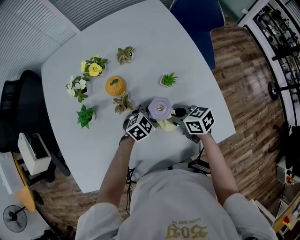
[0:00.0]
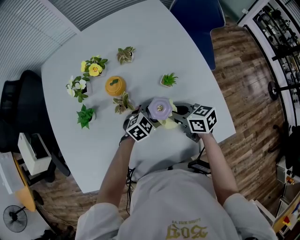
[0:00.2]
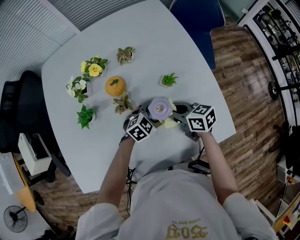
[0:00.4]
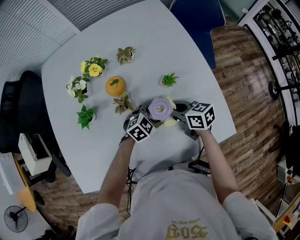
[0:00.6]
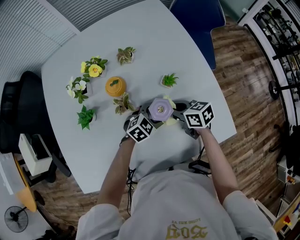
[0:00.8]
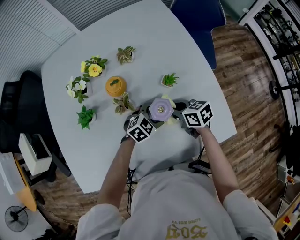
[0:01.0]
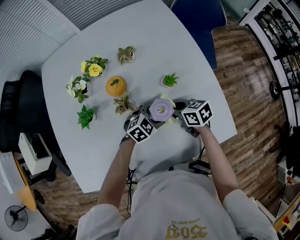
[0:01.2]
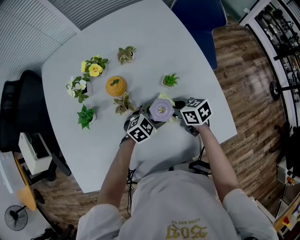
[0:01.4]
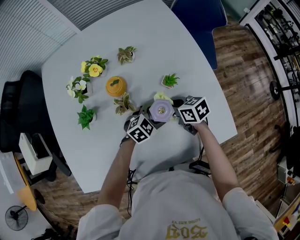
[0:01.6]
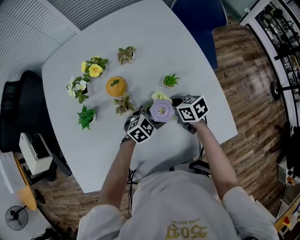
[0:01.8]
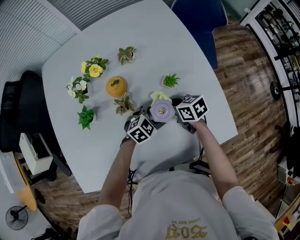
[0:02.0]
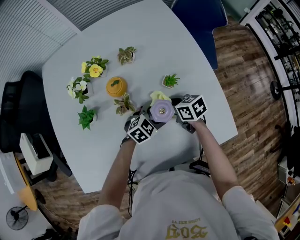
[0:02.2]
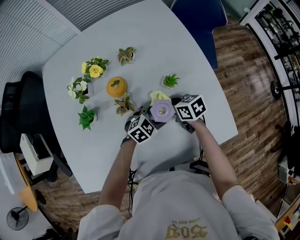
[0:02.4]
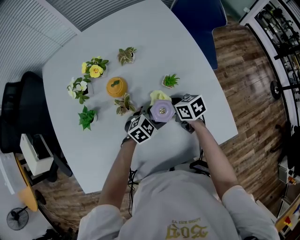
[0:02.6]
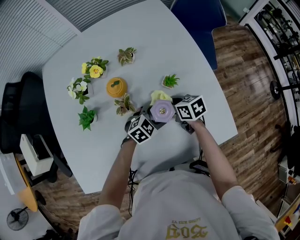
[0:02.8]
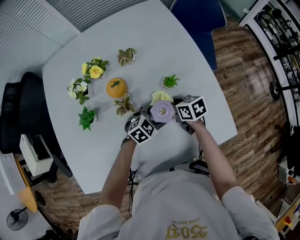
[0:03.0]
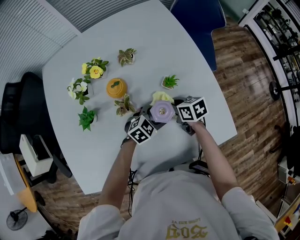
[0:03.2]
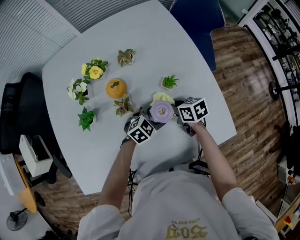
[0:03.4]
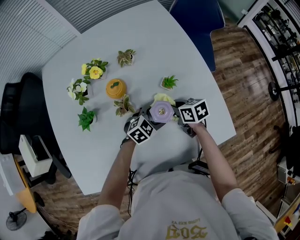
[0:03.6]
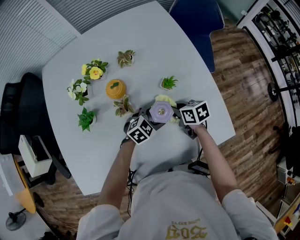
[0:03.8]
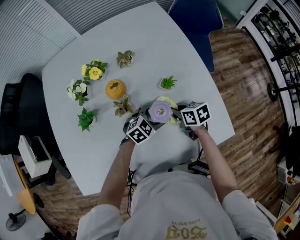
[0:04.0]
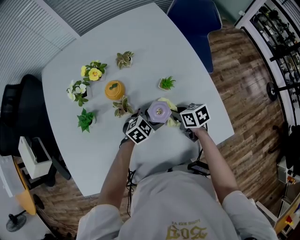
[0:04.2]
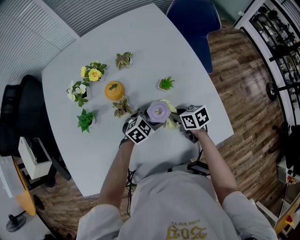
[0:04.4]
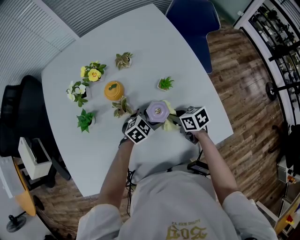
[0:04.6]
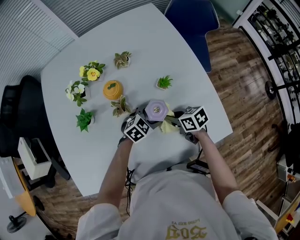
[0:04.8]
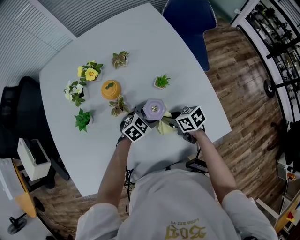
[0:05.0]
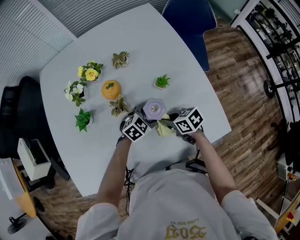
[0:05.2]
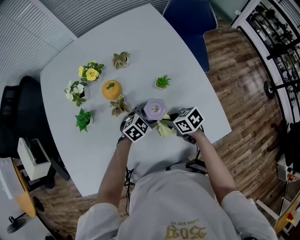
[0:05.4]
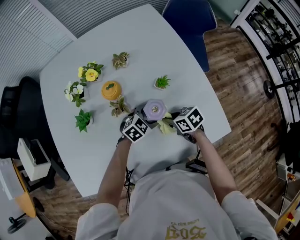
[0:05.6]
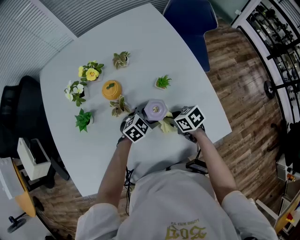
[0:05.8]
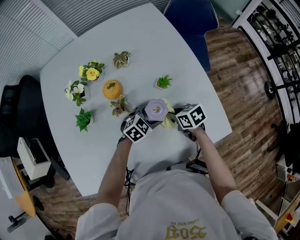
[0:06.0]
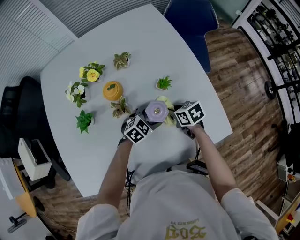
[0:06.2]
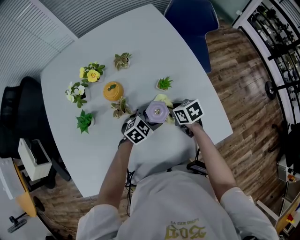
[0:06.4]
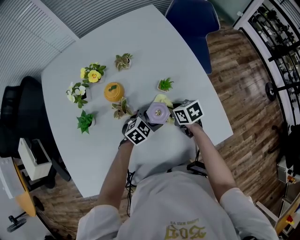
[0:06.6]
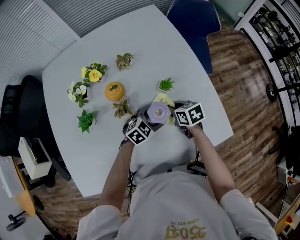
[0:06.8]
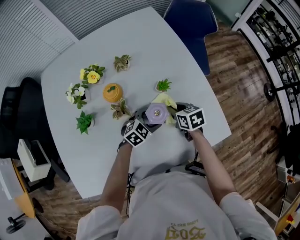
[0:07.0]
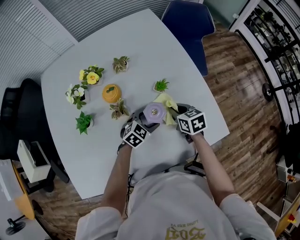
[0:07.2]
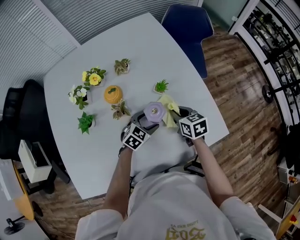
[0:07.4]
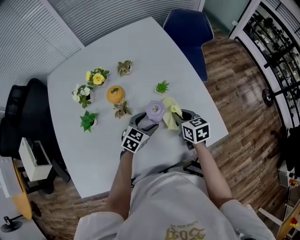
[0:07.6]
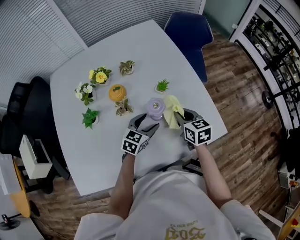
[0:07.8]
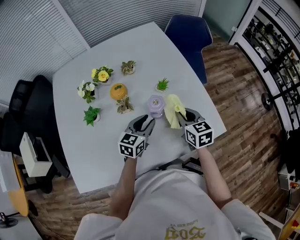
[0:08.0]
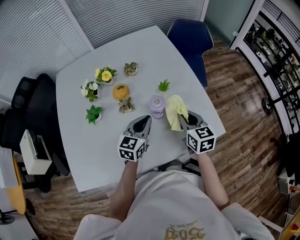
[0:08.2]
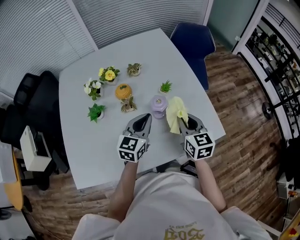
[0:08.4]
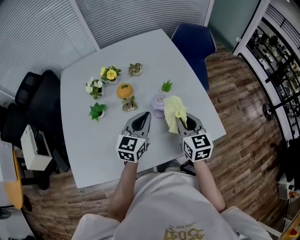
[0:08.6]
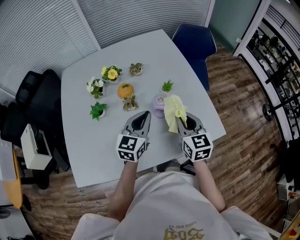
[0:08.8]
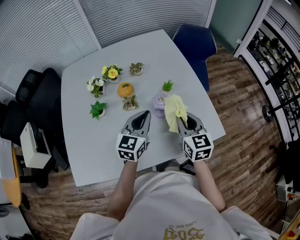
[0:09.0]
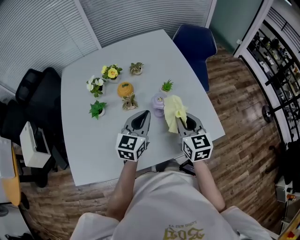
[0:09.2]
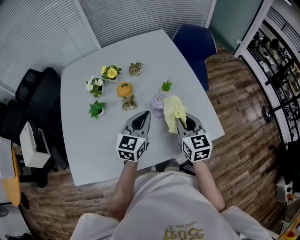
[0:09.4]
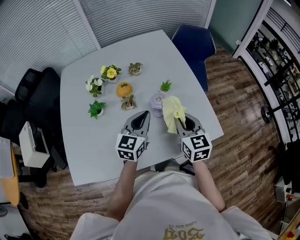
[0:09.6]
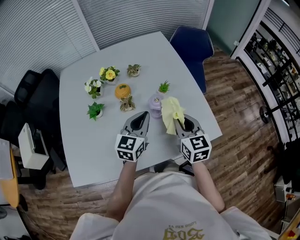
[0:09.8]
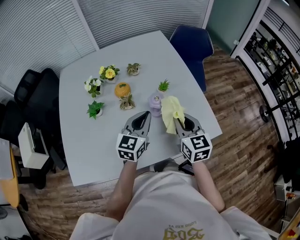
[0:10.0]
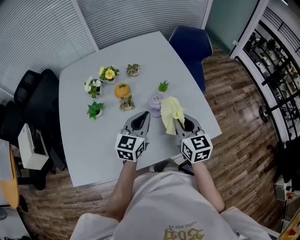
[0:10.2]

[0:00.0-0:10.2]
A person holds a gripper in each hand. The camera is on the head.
0:00.0 to 0:01.4: There are only small adjustments of the grippers.
0:01.4 to 0:03.0: The grippers stay close to where they were, moving slightly.
0:03.0 to 0:04.4: The right gripper shifts by approximately 5 cm.
0:04.4 to 0:05.8: The grippers stay close to where they were, moving slightly.
0:05.8 to 0:07.2: The right gripper changes place by roughly 10 cm, and rotates roughly 20 degrees.
0:07.2 to 0:08.8: The right gripper is displaced upward and backward by some 20 cm, and turns by some 30 degrees; the left gripper goes some 20 cm upward, points its fingers about 30 degrees further upward, and closes its fingers.
0:08.8 to 0:10.2: There are only small adjustments of the grippers.

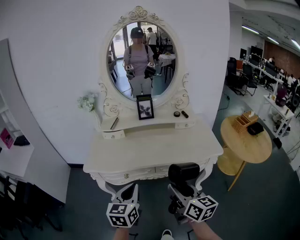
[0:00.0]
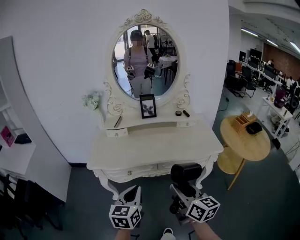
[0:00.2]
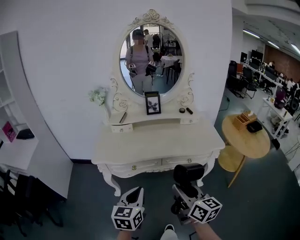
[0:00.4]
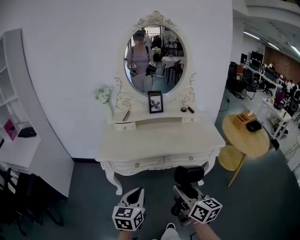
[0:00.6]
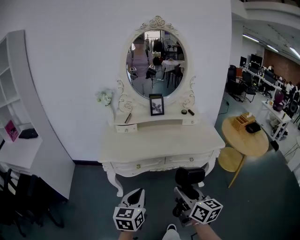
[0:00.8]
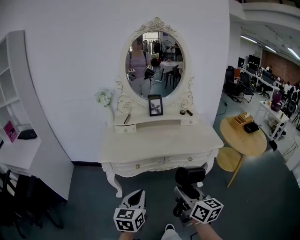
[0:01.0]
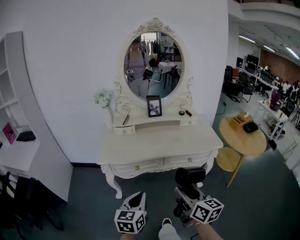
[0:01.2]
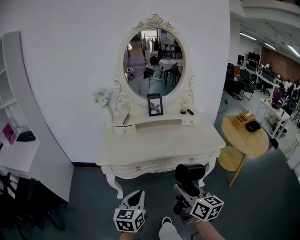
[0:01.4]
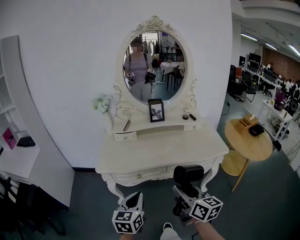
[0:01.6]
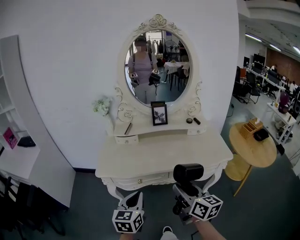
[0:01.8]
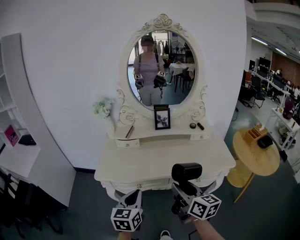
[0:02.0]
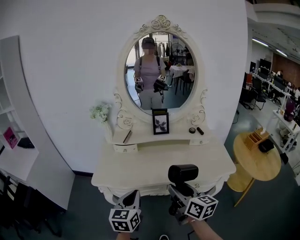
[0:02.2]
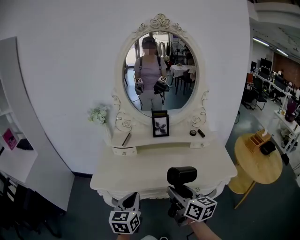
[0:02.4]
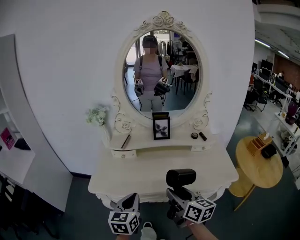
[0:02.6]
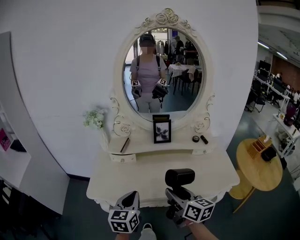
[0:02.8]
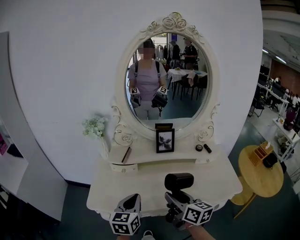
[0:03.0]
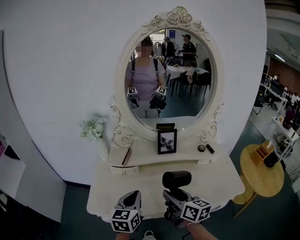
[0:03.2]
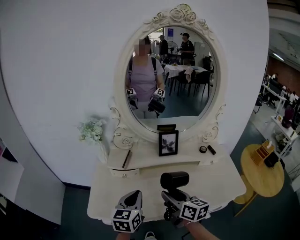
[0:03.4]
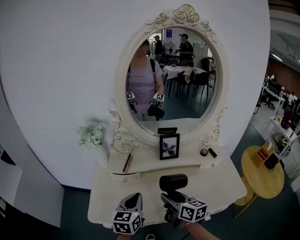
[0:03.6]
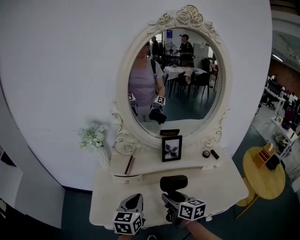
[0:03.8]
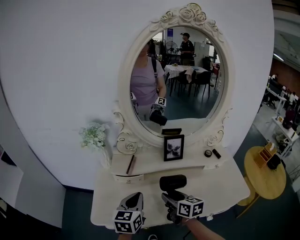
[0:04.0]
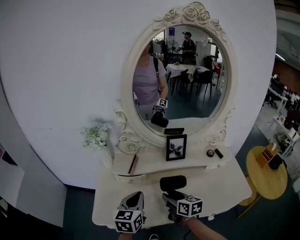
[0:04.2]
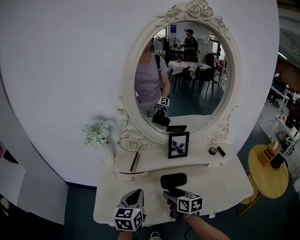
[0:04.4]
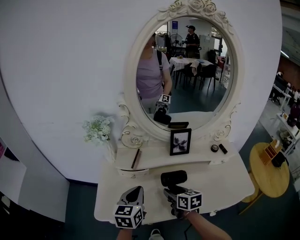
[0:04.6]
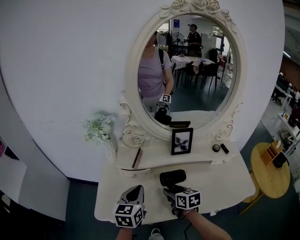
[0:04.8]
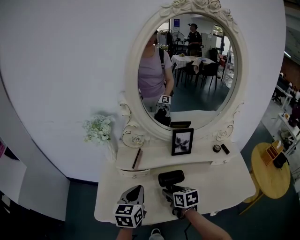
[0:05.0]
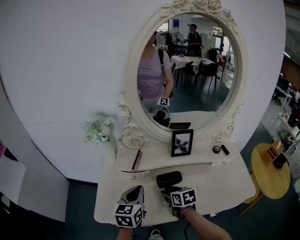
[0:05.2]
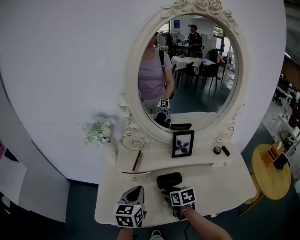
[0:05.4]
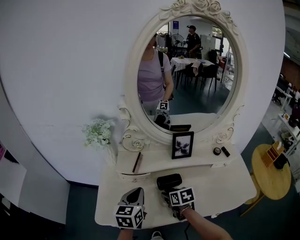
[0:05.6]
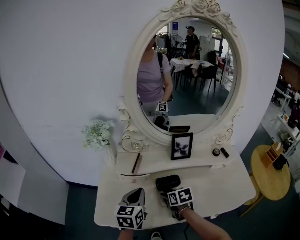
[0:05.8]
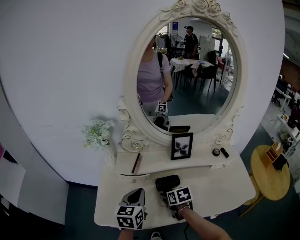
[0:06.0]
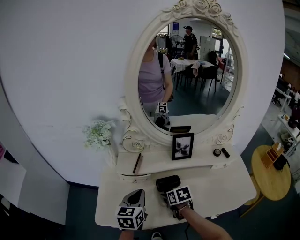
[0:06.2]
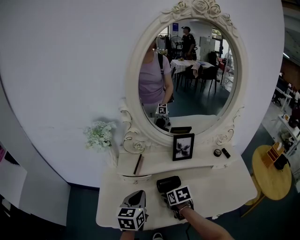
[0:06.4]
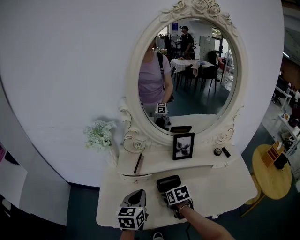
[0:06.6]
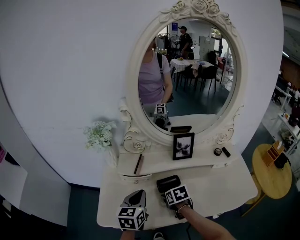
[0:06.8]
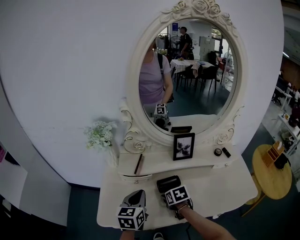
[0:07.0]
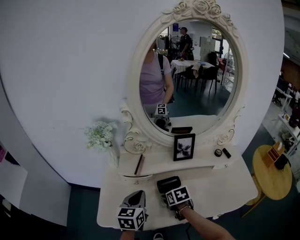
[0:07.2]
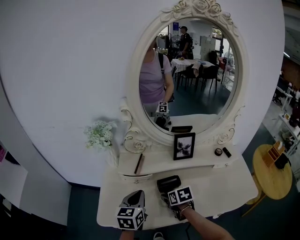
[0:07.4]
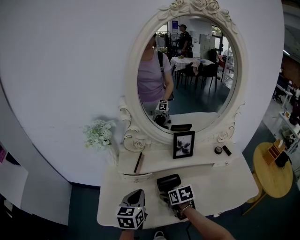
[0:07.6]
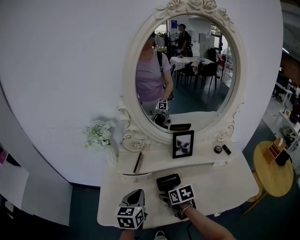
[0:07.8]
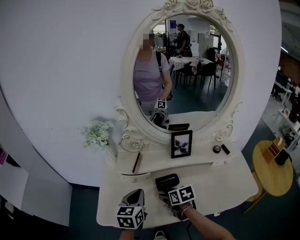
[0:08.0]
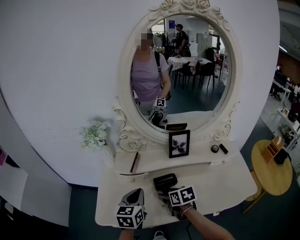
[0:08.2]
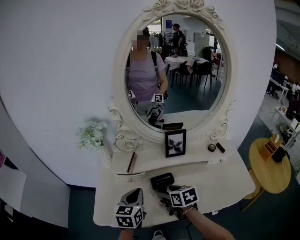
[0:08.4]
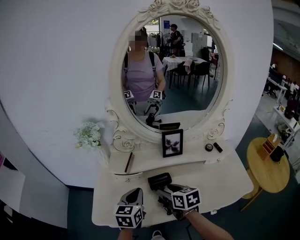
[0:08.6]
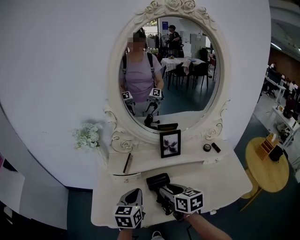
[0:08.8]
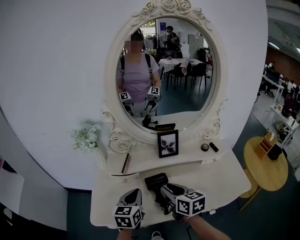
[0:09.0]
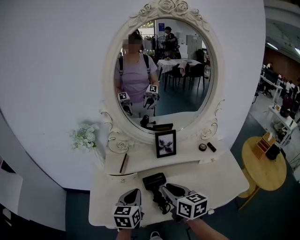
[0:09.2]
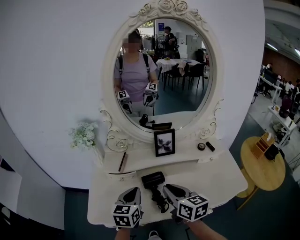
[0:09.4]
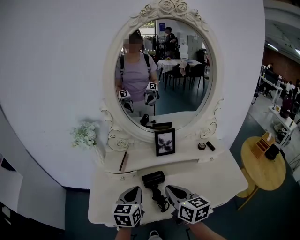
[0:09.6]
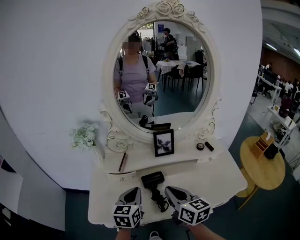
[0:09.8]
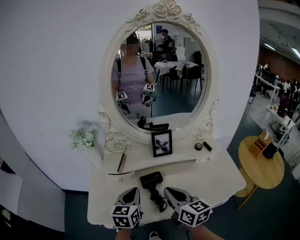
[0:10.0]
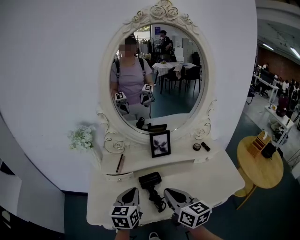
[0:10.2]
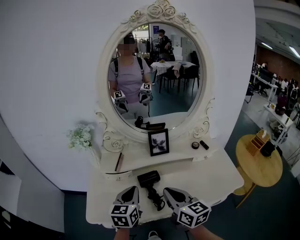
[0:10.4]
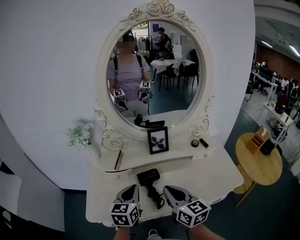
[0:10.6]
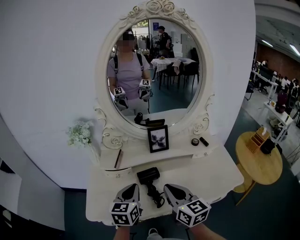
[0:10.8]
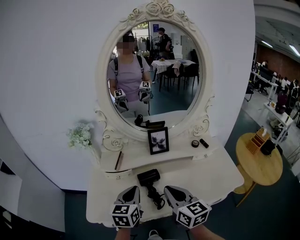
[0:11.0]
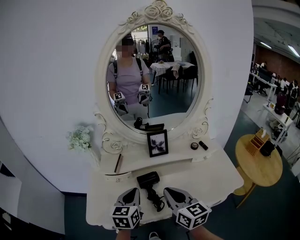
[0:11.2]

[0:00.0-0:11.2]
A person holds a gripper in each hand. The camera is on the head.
0:00.0 to 0:01.6: The right gripper heads to the left, covering some 10 cm, while the left gripper goes roughly 10 cm to the left and backward.
0:01.6 to 0:03.2: The grippers both shift forward by about 30 cm.
0:03.2 to 0:04.8: The left gripper goes roughly 10 cm forward, while the right gripper travels downward and forward by roughly 15 cm, and changes its angle by some 20 degrees.
0:04.8 to 0:06.4: The right gripper changes place by about 5 cm, and turns by about 20 degrees.
0:06.4 to 0:08.0: The grippers stay close to where they were, moving slightly.
0:08.0 to 0:09.6: The right gripper shifts roughly 15 cm upward and backward, points its fingers some 30 degrees further upward, and closes up, while the left gripper goes some 5 cm to the right.
0:09.6 to 0:11.2: There are only small adjustments of the grippers.

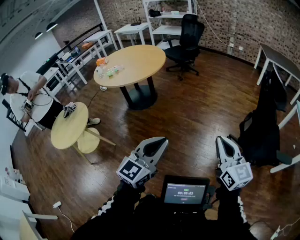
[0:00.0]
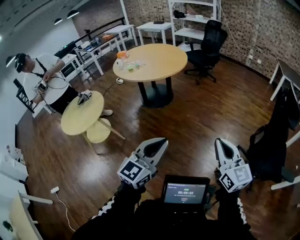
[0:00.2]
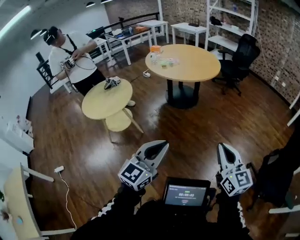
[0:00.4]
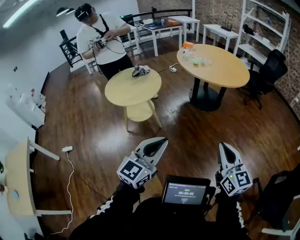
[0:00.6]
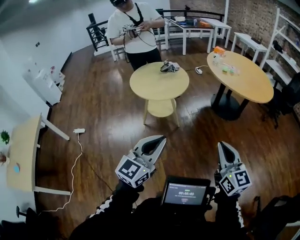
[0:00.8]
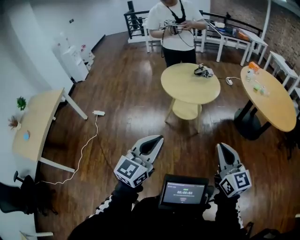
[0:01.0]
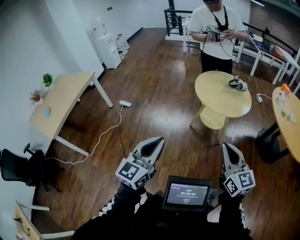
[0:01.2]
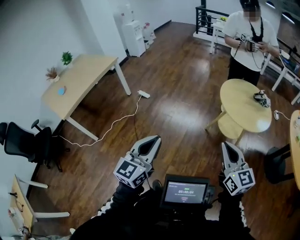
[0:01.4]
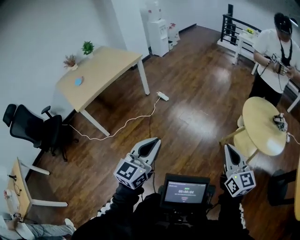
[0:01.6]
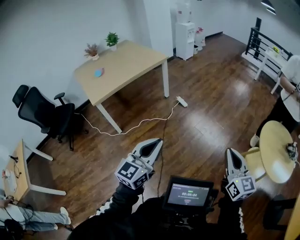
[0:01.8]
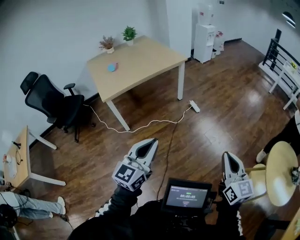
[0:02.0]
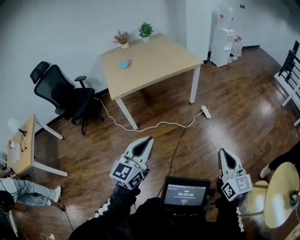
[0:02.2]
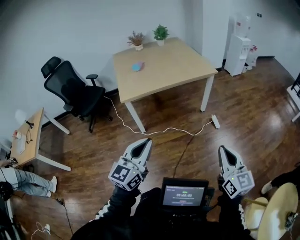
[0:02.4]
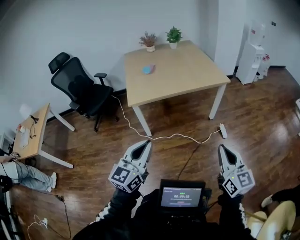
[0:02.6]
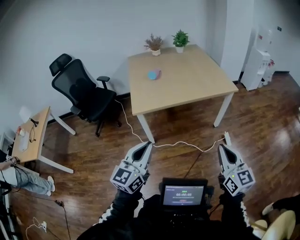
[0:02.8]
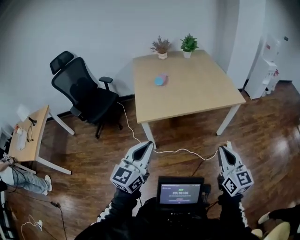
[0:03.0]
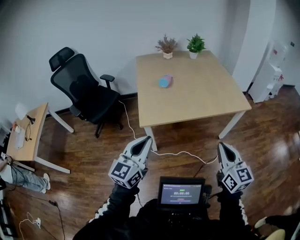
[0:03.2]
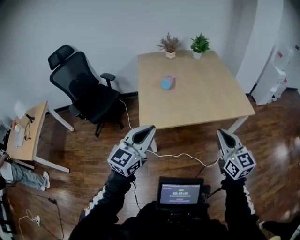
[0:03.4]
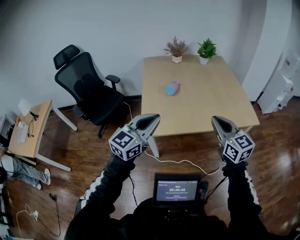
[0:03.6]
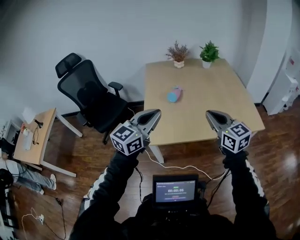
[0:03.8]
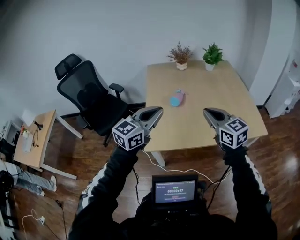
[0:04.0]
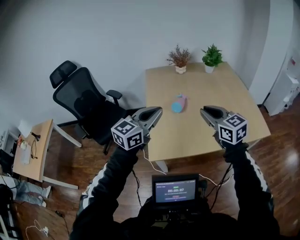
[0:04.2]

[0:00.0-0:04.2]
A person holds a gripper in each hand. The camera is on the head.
0:00.0 to 0:01.4: The two grippers travel together, approximately 1.5 m. The right gripper rotates about 80 degrees; the left gripper rotates some 90 degrees.
0:01.4 to 0:02.8: The pair of grippers is taken about 1 m. The left gripper changes its angle by about 60 degrees, while the right gripper turns by about 50 degrees.
0:02.8 to 0:04.2: The two grippers travel together, forward, about 90 cm. The right gripper changes its angle by roughly 30 degrees.
